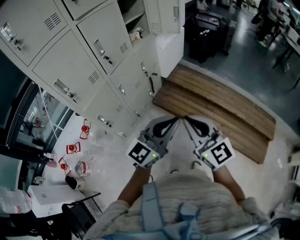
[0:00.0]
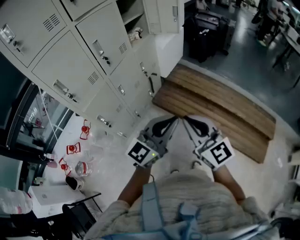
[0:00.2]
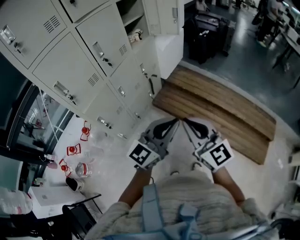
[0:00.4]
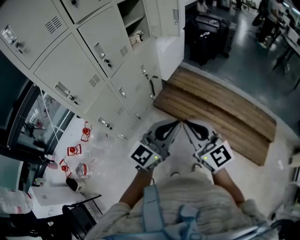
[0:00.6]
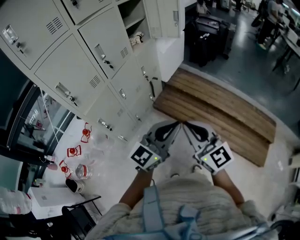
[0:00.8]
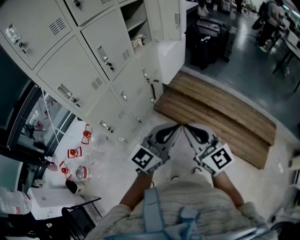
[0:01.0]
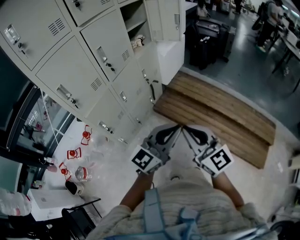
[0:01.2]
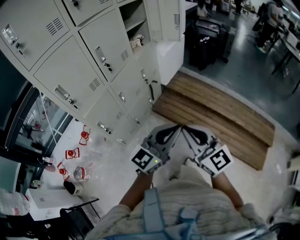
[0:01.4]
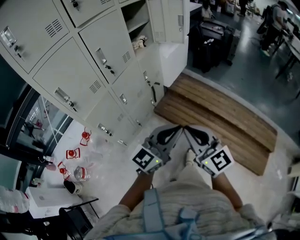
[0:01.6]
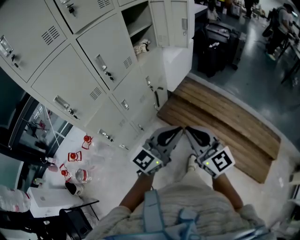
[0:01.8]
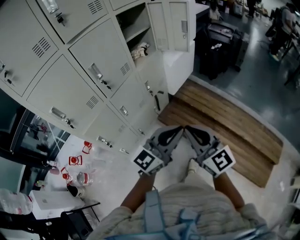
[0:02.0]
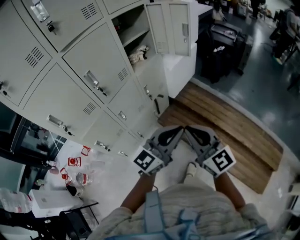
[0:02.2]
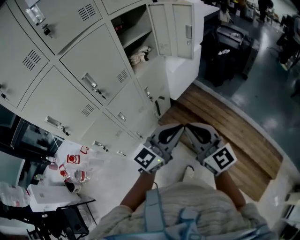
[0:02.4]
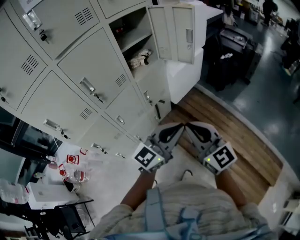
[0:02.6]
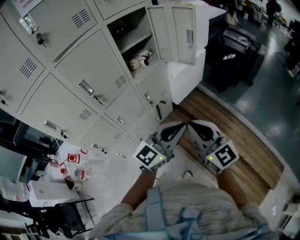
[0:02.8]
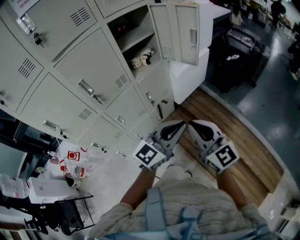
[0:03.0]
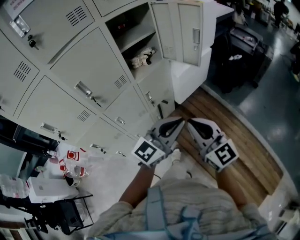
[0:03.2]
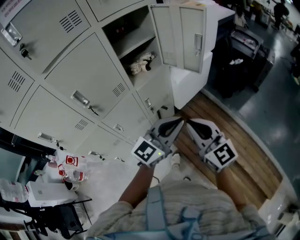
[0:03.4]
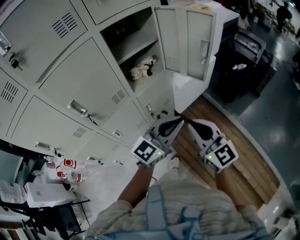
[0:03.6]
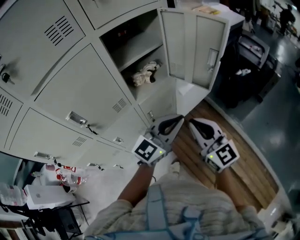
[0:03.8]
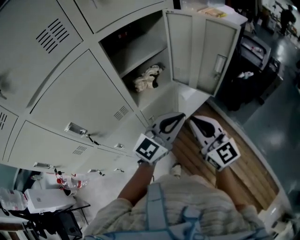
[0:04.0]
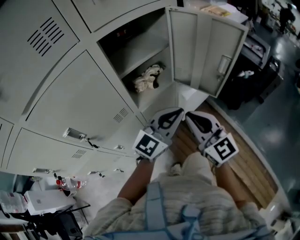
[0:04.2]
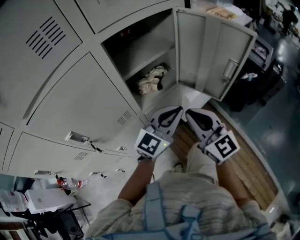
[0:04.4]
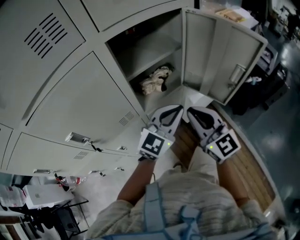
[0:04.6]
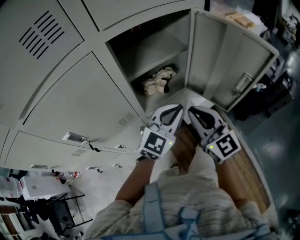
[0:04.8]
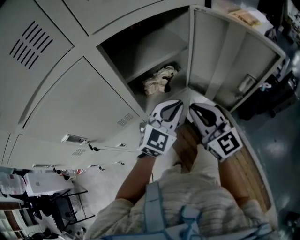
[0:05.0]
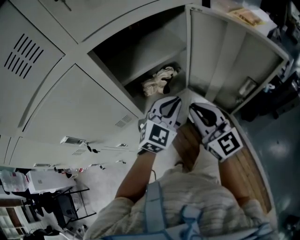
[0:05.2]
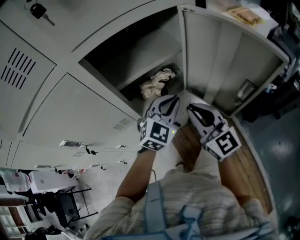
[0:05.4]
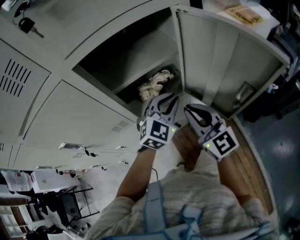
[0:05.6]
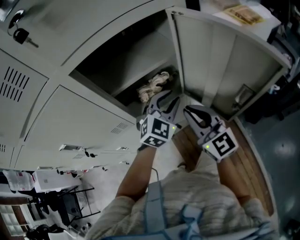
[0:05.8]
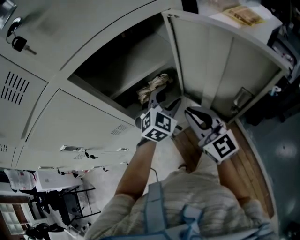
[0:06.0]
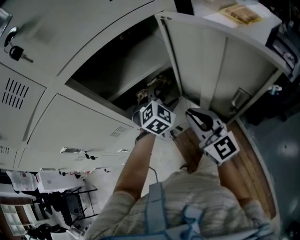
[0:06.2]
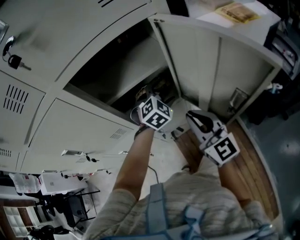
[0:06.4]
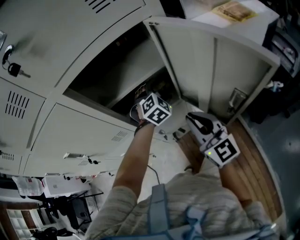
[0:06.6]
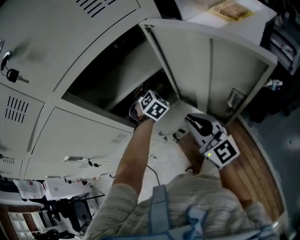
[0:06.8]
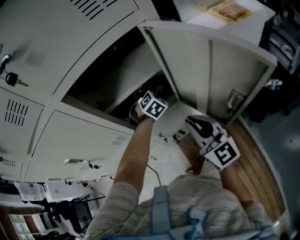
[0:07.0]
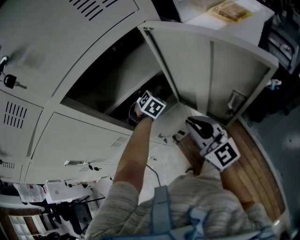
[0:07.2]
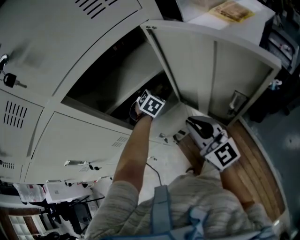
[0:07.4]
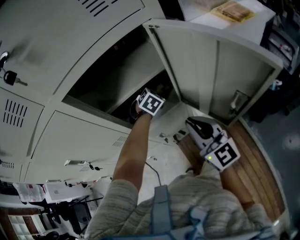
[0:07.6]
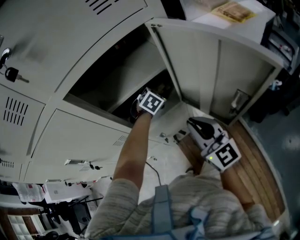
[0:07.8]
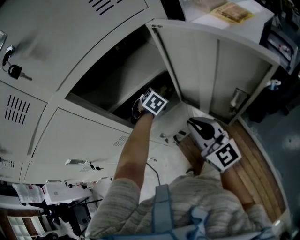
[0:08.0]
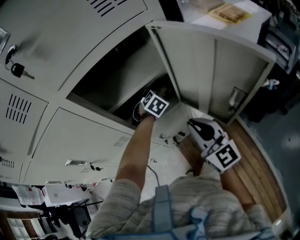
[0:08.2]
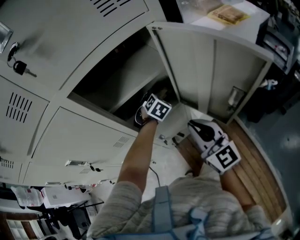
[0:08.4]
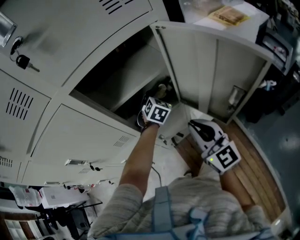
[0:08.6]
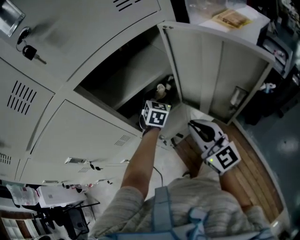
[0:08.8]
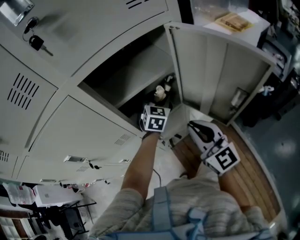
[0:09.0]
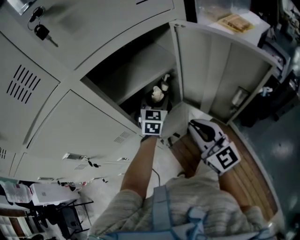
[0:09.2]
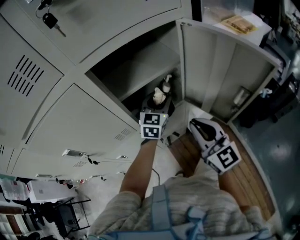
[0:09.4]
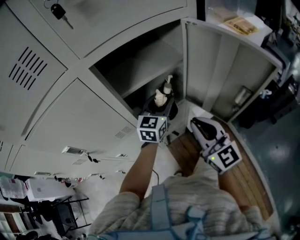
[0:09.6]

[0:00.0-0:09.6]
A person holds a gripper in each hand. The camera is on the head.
0:00.0 to 0:01.6: There are only small adjustments of the grippers.
0:01.6 to 0:03.2: Both grippers move forward, about 35 cm.
0:03.2 to 0:04.8: Both grippers travel together forward, about 35 cm. The left gripper turns by approximately 30 degrees.
0:04.8 to 0:06.4: The left gripper shifts some 20 cm forward and downward, tips its fingers downward by some 30 degrees, and opens; the right gripper heads to the right and forward, covering approximately 10 cm.
0:06.4 to 0:08.0: The left gripper moves downward and forward, some 10 cm.
0:08.0 to 0:09.6: The left gripper travels upward and backward by some 15 cm, and angles its fingers upward, by some 50 degrees.

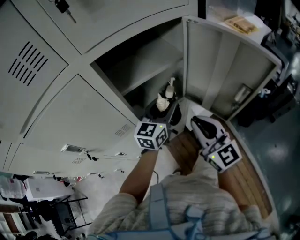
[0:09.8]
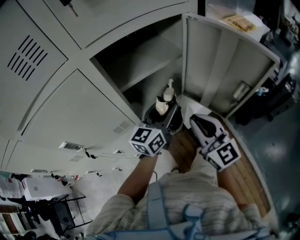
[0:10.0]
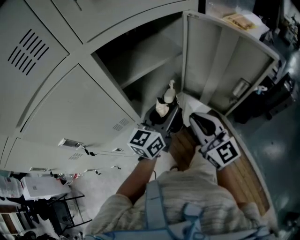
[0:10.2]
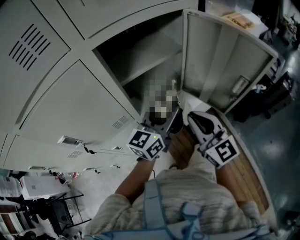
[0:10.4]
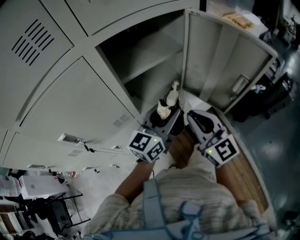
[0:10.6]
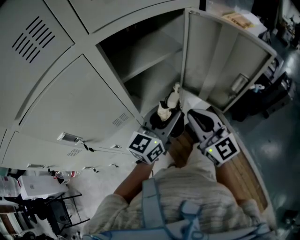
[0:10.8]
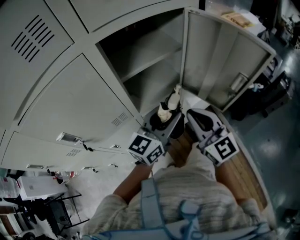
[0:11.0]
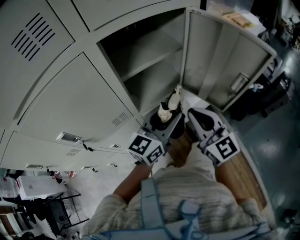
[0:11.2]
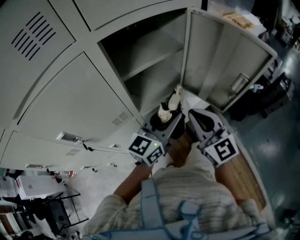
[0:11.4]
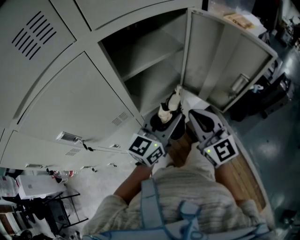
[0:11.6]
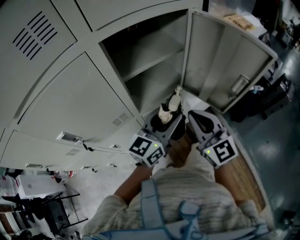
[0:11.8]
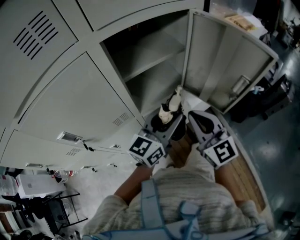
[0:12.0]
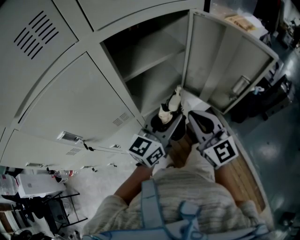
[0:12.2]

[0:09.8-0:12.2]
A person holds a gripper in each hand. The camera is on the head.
0:09.8 to 0:11.0: The left gripper heads backward, covering approximately 10 cm.
0:11.0 to 0:12.2: Both grippers stay about where they are.

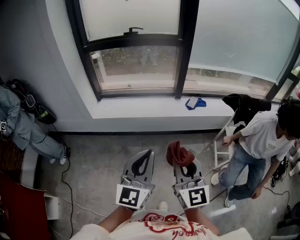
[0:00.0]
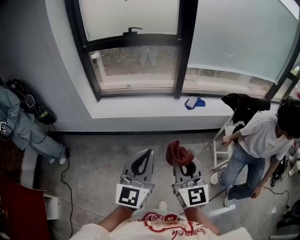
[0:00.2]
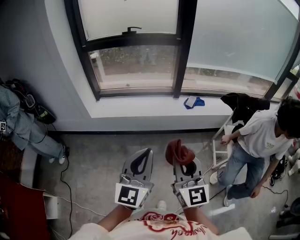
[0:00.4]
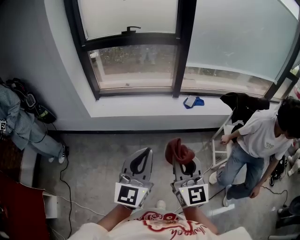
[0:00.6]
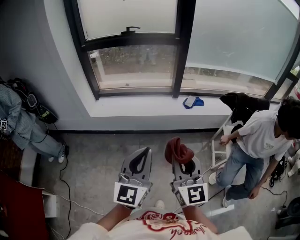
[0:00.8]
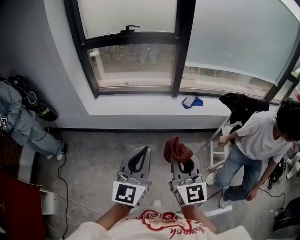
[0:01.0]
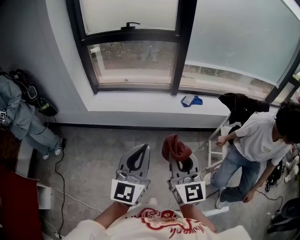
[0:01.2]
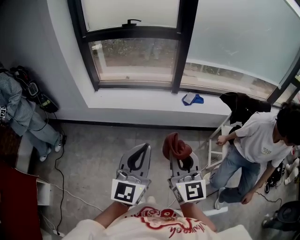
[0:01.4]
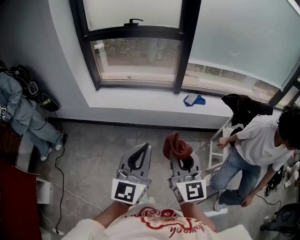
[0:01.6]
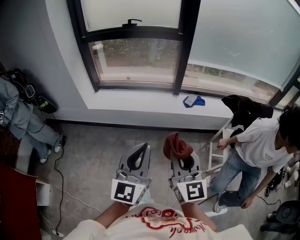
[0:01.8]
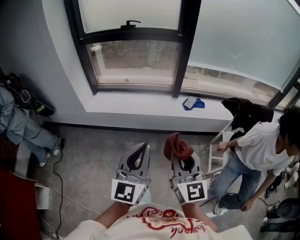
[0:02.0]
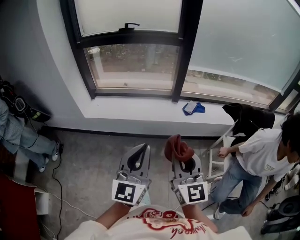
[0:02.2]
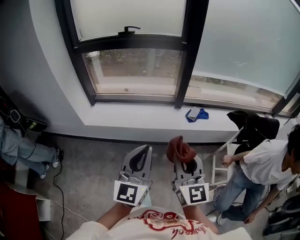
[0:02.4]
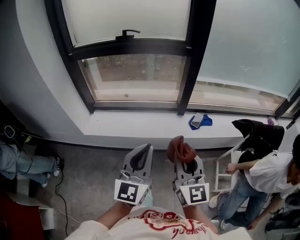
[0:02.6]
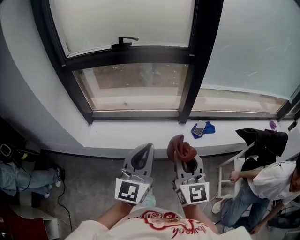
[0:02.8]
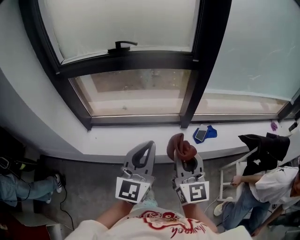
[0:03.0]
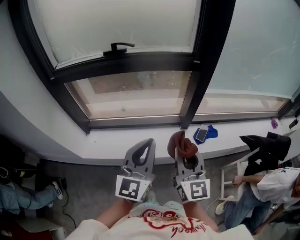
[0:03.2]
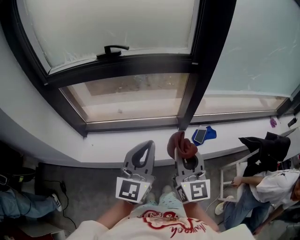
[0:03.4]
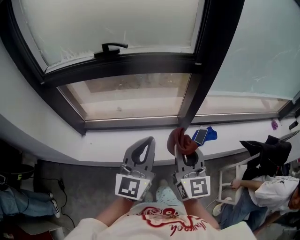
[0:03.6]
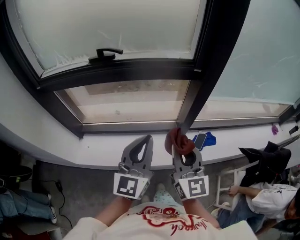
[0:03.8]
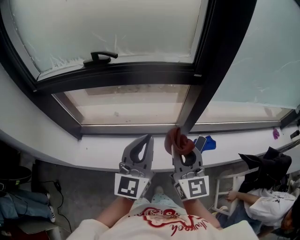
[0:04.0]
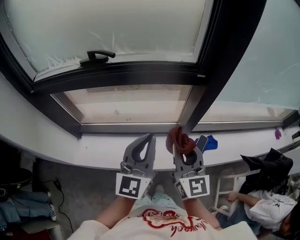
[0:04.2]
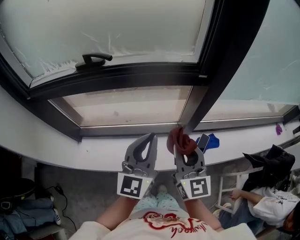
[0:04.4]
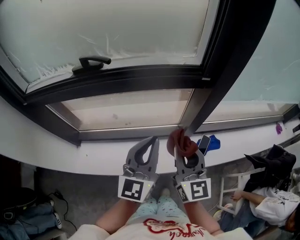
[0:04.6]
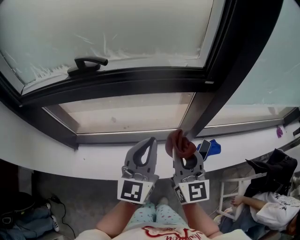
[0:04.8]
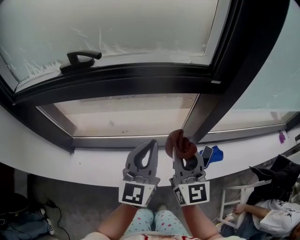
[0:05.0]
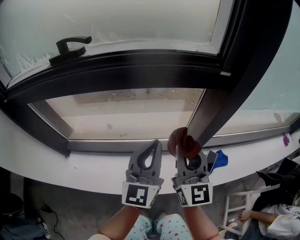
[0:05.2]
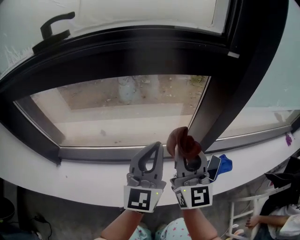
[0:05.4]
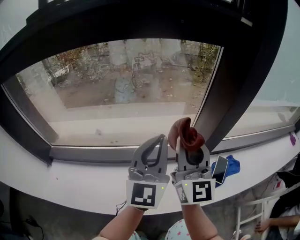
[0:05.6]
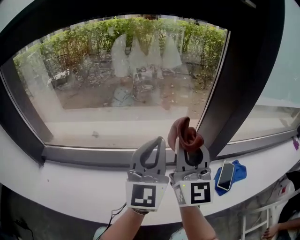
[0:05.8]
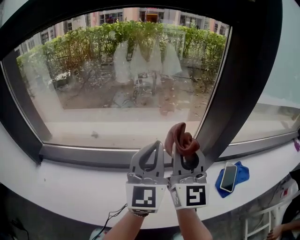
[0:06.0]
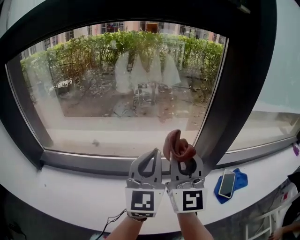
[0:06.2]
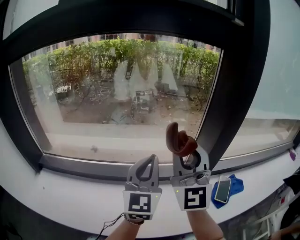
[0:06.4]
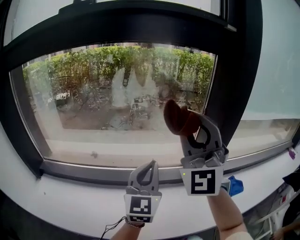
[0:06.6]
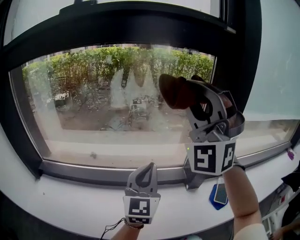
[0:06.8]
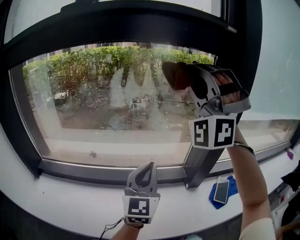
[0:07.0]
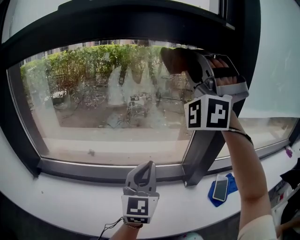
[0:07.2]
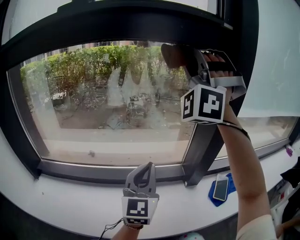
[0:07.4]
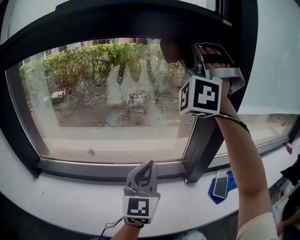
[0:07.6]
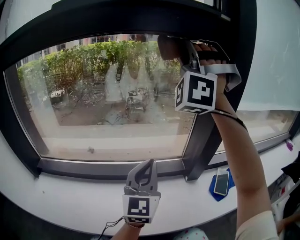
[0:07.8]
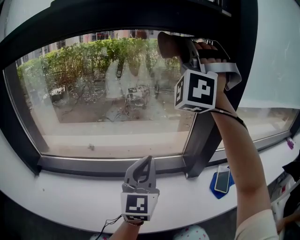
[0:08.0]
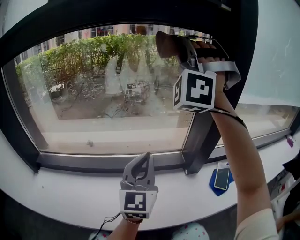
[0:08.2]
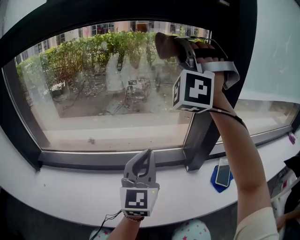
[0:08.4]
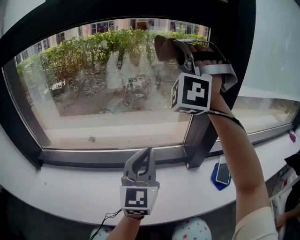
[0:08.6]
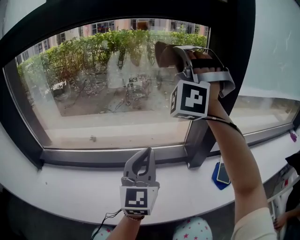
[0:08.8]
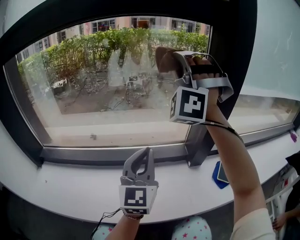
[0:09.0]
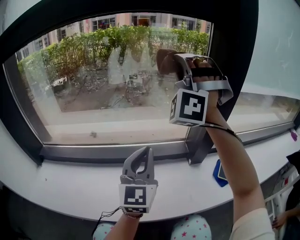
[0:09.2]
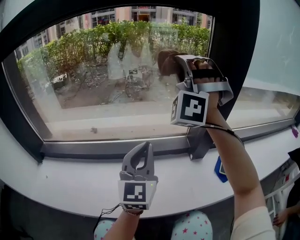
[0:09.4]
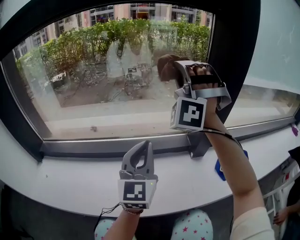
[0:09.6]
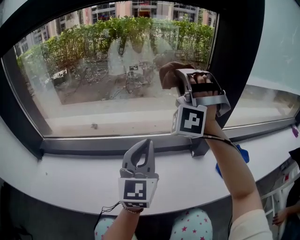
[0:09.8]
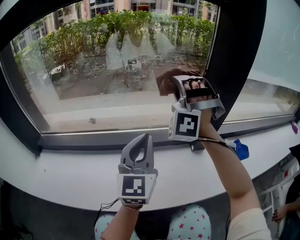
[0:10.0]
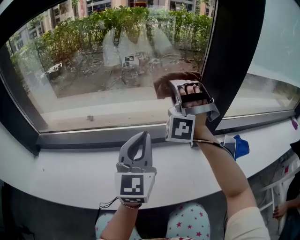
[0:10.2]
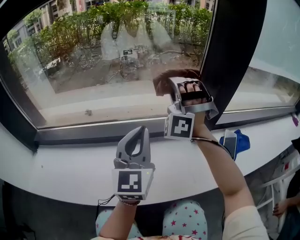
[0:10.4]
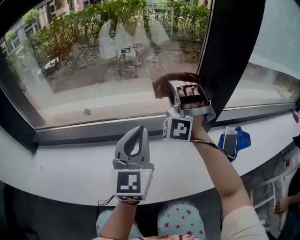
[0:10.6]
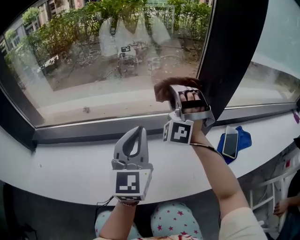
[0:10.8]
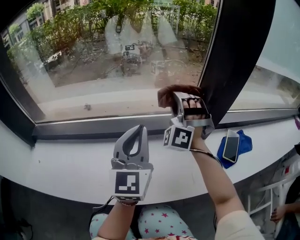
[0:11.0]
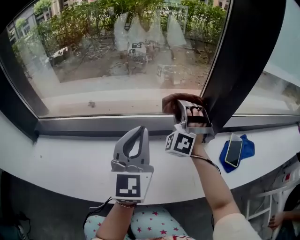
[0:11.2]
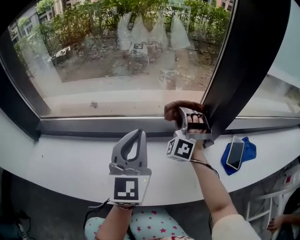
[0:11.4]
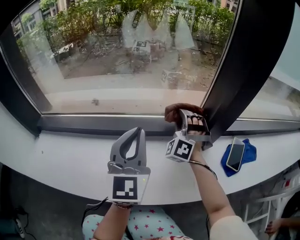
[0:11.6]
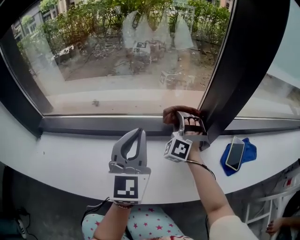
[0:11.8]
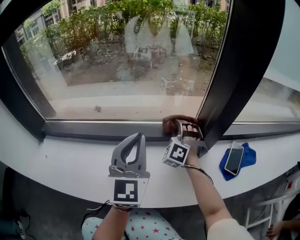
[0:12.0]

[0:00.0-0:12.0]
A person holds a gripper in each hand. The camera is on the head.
0:00.0 to 0:01.6: The left gripper changes place by approximately 5 cm.
0:01.6 to 0:03.0: The left gripper shifts by roughly 50 cm.
0:03.0 to 0:04.4: The left gripper changes place by roughly 25 cm.
0:04.4 to 0:06.0: The left gripper heads downward, covering about 35 cm.
